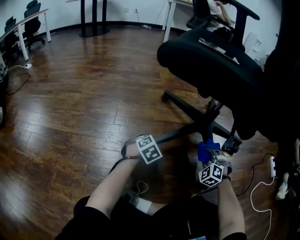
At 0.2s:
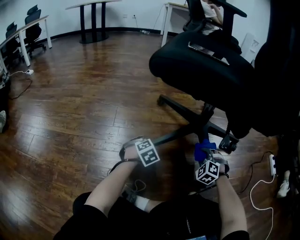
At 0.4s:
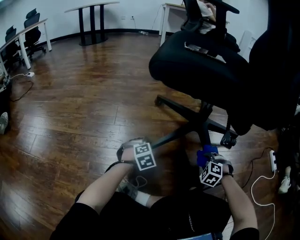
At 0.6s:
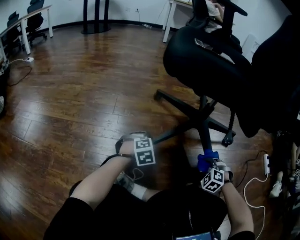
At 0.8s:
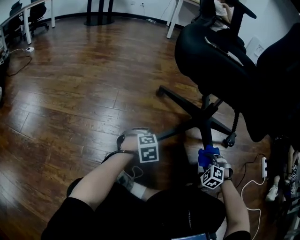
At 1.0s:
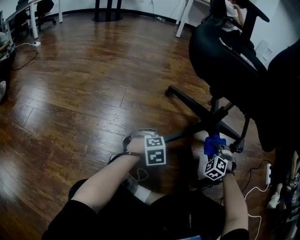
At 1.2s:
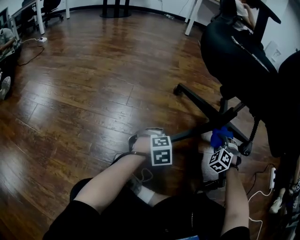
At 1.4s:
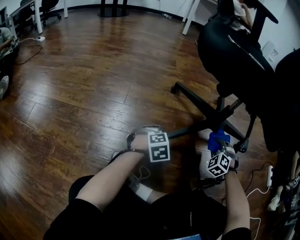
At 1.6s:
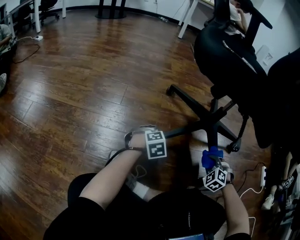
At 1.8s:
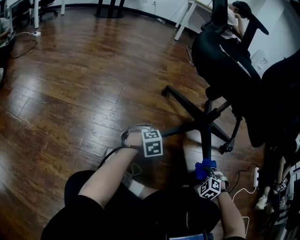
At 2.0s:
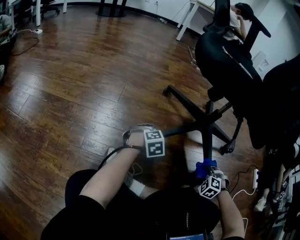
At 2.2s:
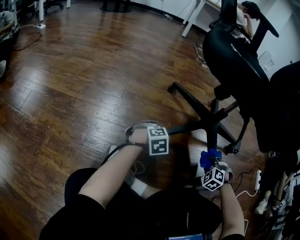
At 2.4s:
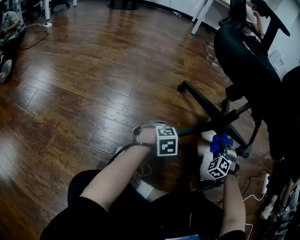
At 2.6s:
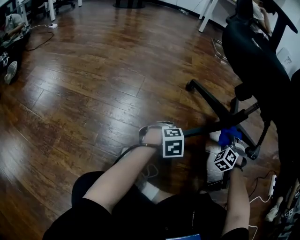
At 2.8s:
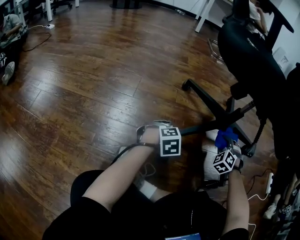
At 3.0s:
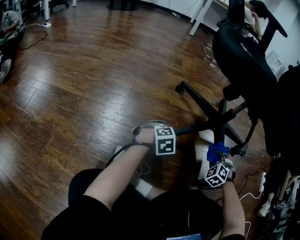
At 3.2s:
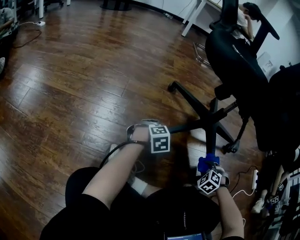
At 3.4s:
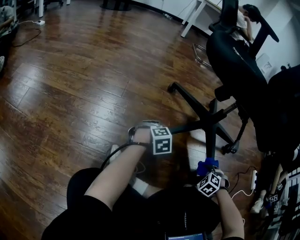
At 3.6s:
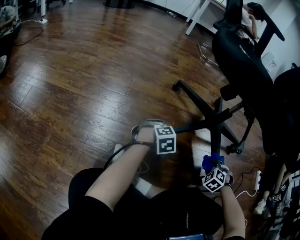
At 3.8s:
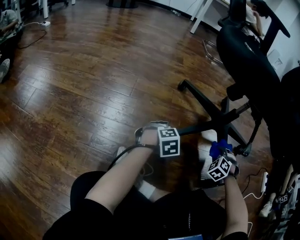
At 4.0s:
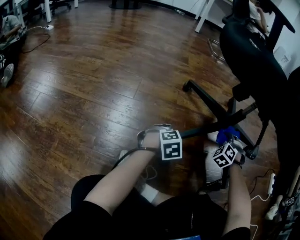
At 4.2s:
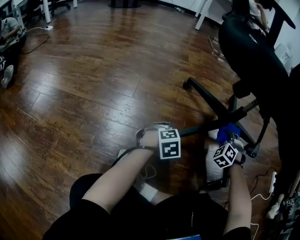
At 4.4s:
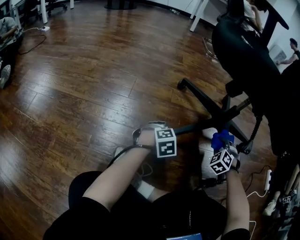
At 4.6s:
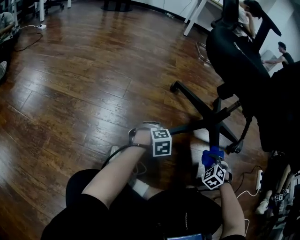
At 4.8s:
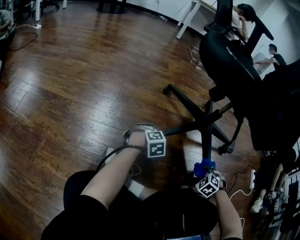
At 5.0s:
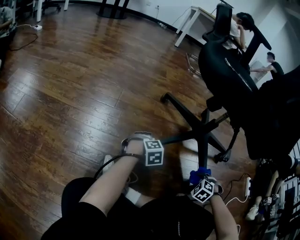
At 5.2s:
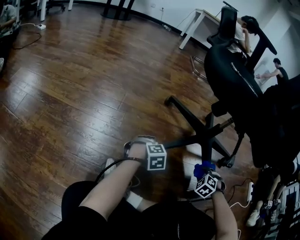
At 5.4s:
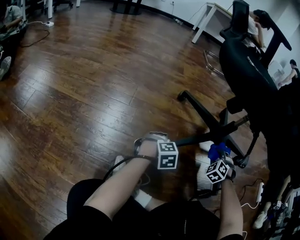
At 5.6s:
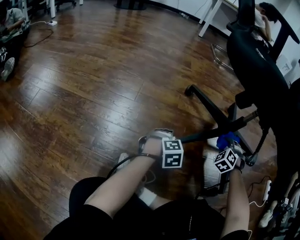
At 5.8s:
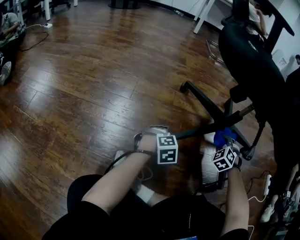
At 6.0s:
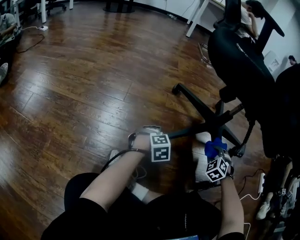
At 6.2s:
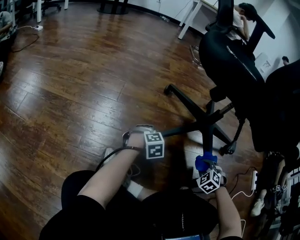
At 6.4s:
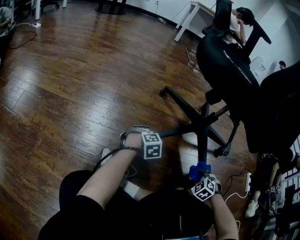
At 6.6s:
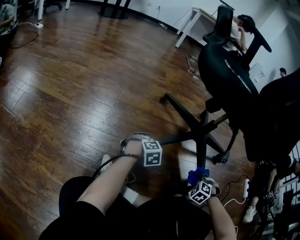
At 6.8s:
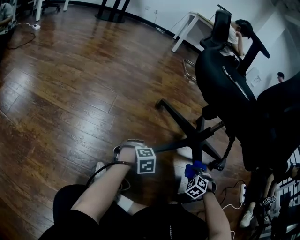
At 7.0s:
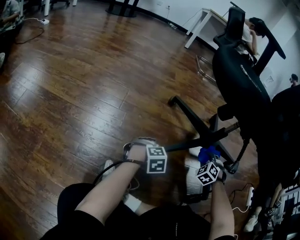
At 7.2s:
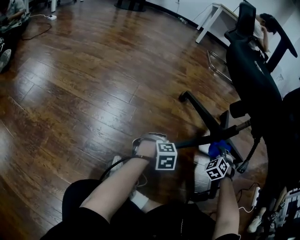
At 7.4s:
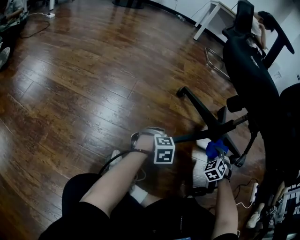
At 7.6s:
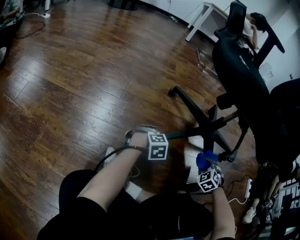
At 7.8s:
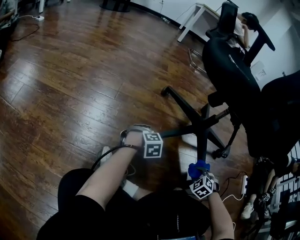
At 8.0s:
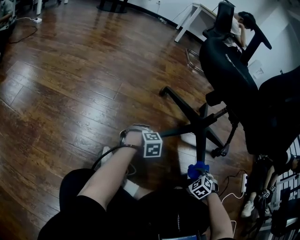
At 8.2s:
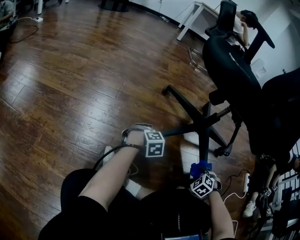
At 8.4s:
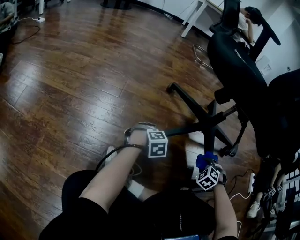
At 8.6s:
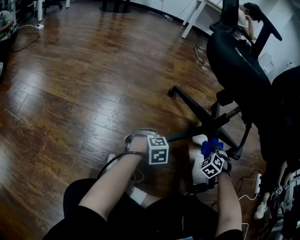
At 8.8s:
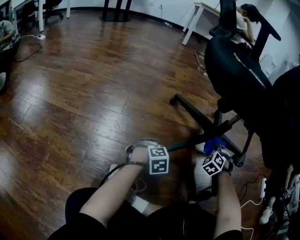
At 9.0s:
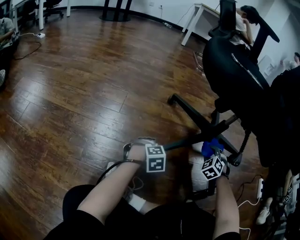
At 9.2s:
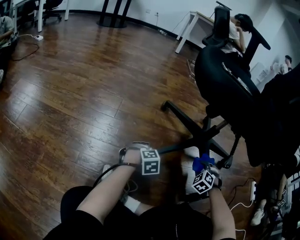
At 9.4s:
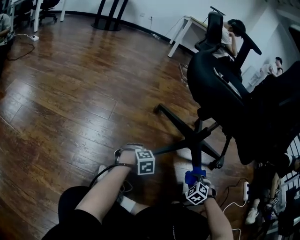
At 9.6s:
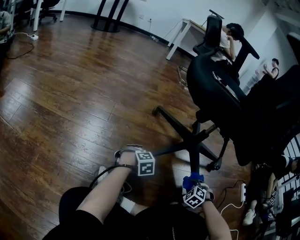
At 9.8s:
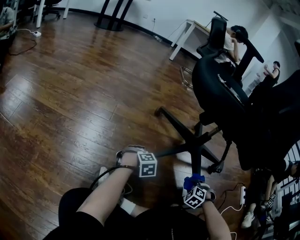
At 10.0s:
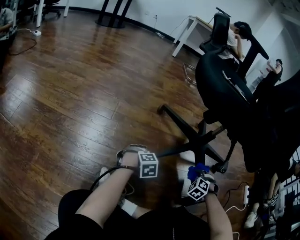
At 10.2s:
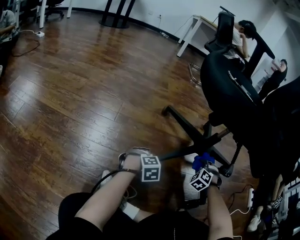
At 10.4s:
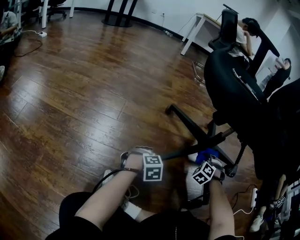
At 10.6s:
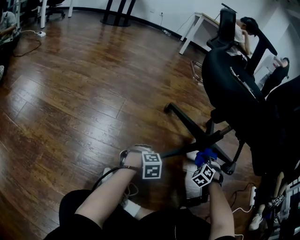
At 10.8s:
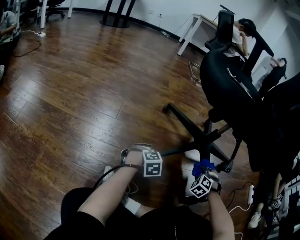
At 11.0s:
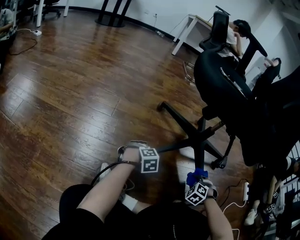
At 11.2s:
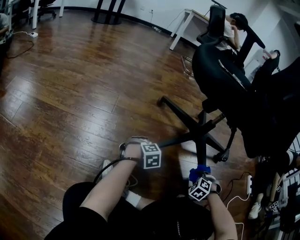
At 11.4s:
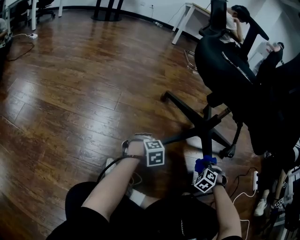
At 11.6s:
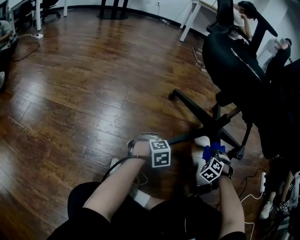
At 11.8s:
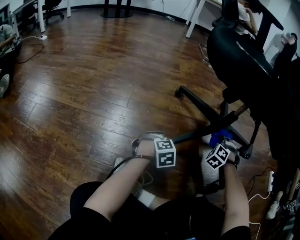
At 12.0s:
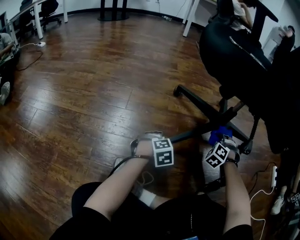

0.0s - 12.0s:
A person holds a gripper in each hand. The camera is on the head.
0.0s - 1.6s: The left gripper shifts by approximately 5 cm.

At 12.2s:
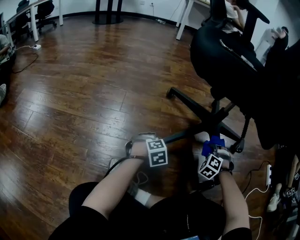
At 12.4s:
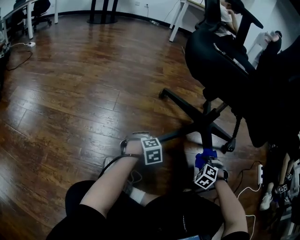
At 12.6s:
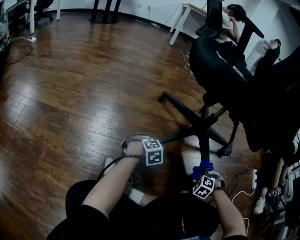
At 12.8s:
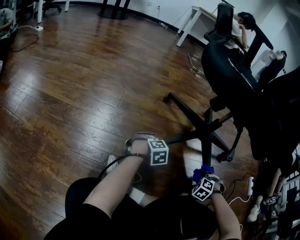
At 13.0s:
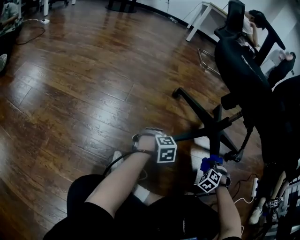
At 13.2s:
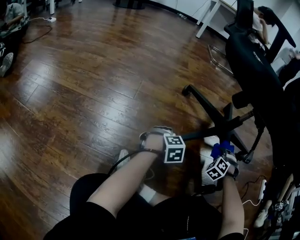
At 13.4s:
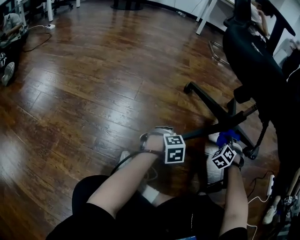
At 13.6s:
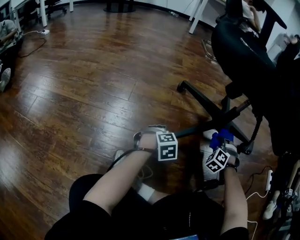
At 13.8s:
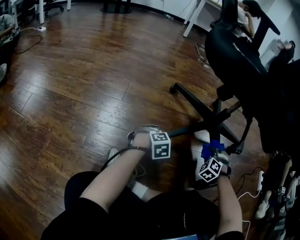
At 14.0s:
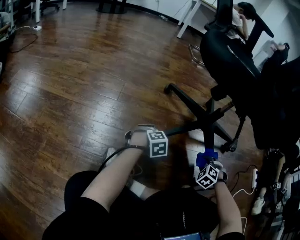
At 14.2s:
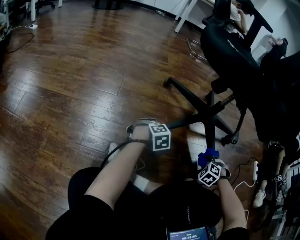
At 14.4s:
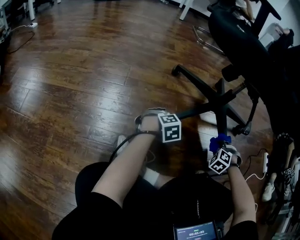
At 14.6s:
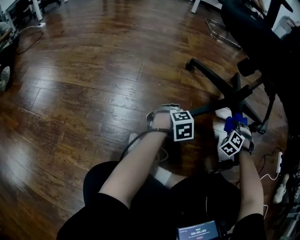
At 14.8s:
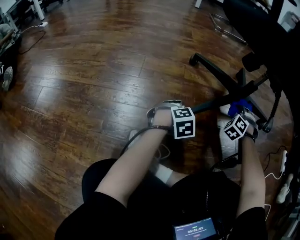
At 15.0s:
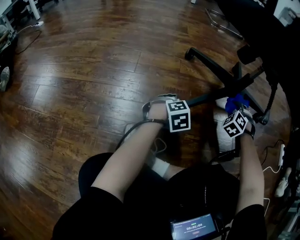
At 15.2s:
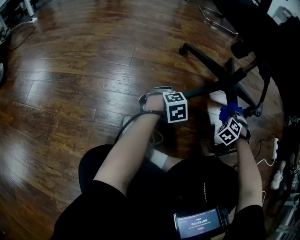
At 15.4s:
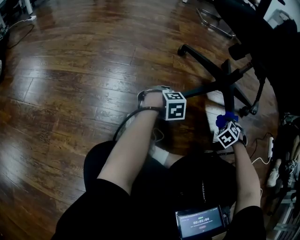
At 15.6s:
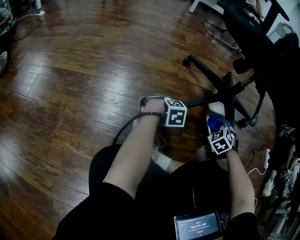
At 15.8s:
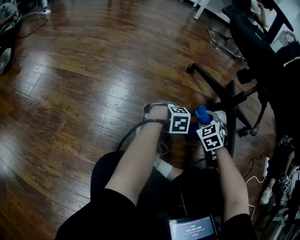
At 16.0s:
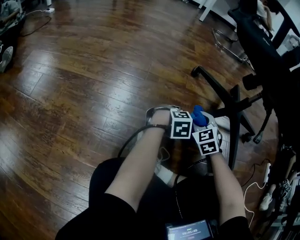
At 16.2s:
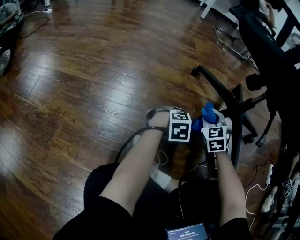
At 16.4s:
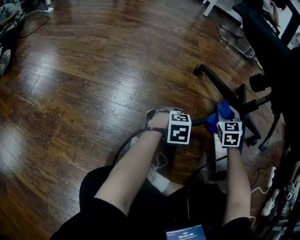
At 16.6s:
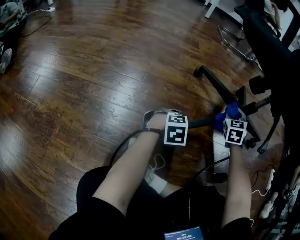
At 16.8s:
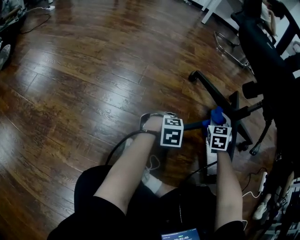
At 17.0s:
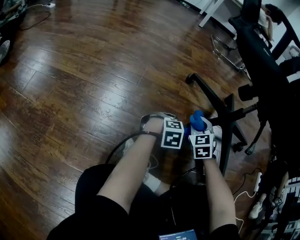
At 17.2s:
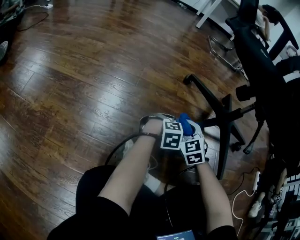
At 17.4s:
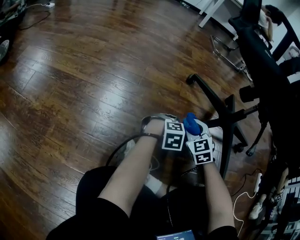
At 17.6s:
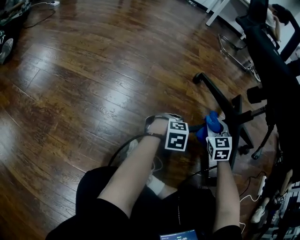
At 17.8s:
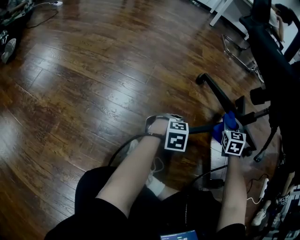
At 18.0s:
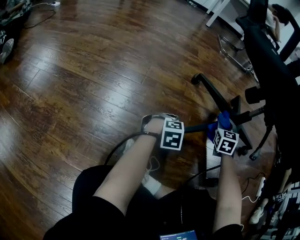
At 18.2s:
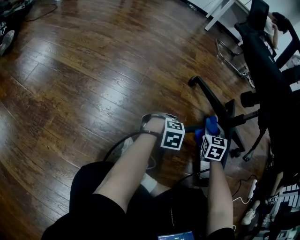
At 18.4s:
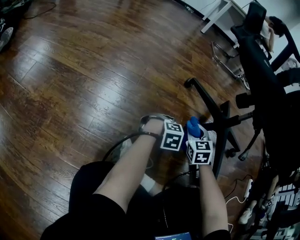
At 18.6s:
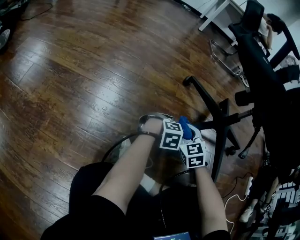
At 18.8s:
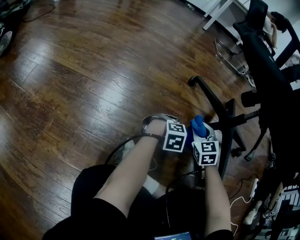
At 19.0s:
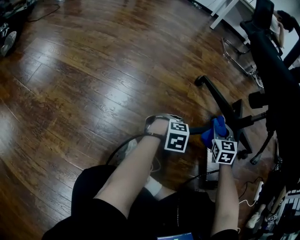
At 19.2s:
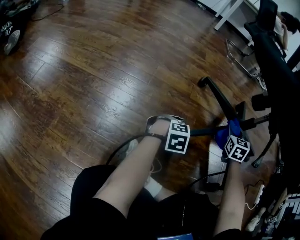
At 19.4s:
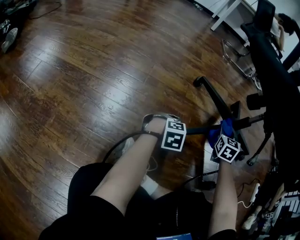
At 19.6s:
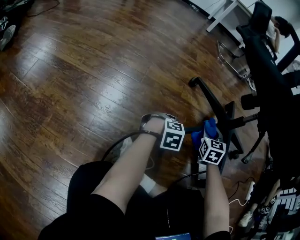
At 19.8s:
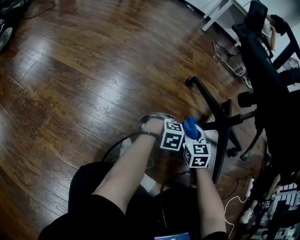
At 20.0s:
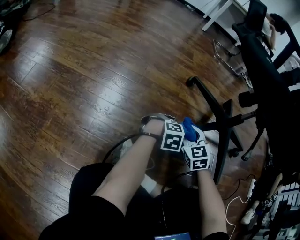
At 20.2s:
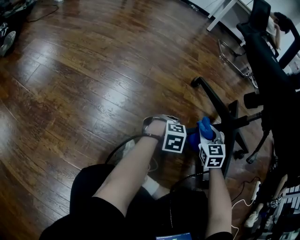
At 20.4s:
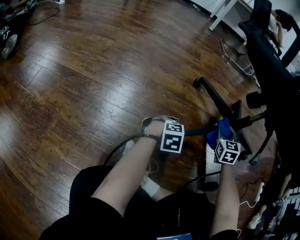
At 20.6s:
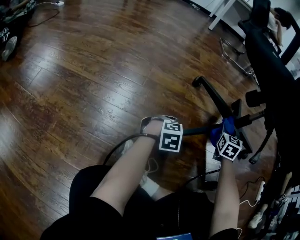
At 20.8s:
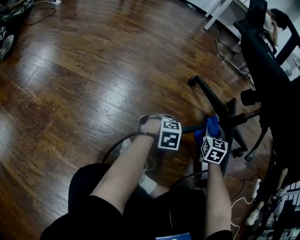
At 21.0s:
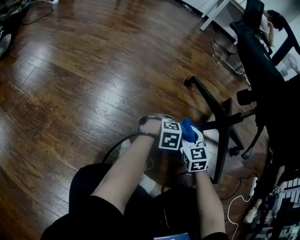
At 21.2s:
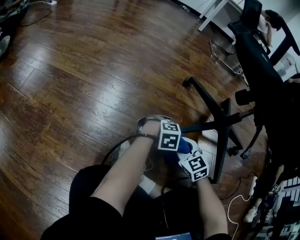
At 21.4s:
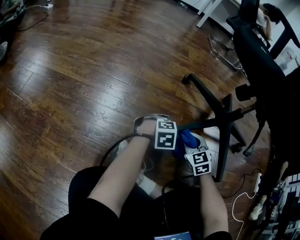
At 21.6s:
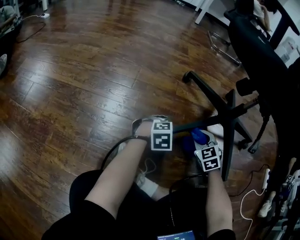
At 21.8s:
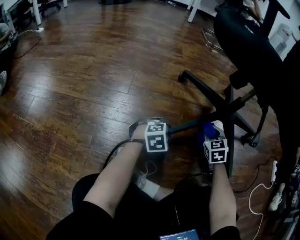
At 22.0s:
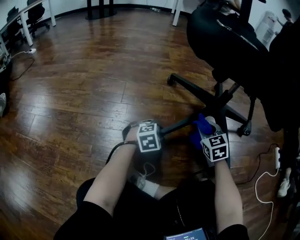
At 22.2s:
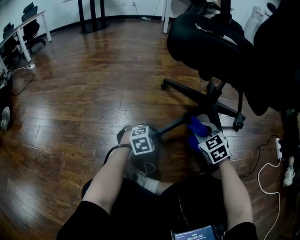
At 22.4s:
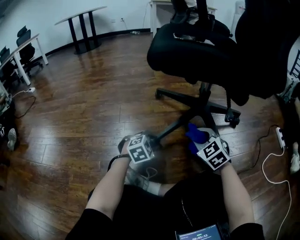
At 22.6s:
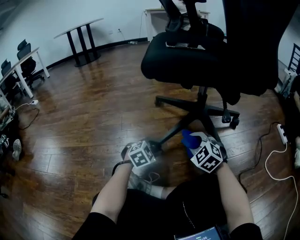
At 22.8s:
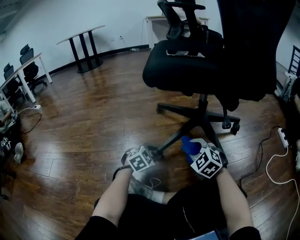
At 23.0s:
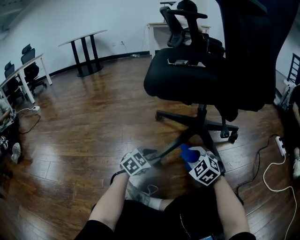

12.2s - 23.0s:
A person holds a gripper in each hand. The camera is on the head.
21.4s - 23.0s: The left gripper goes roughly 10 cm upward.

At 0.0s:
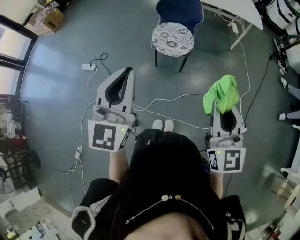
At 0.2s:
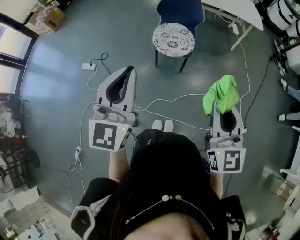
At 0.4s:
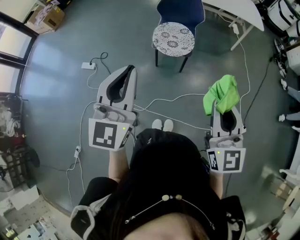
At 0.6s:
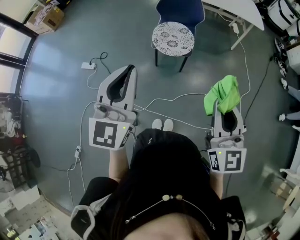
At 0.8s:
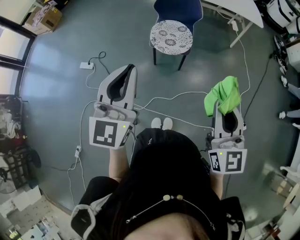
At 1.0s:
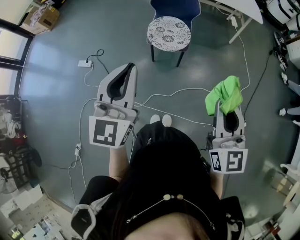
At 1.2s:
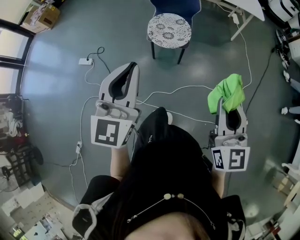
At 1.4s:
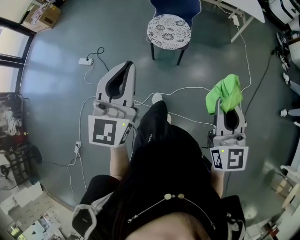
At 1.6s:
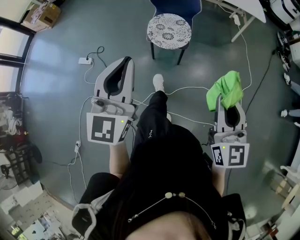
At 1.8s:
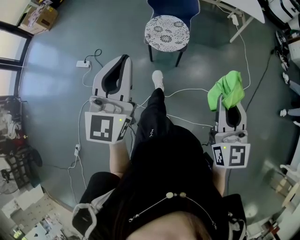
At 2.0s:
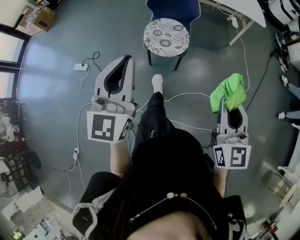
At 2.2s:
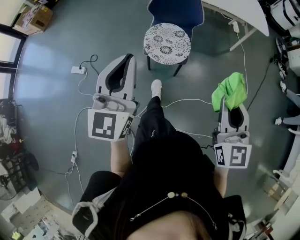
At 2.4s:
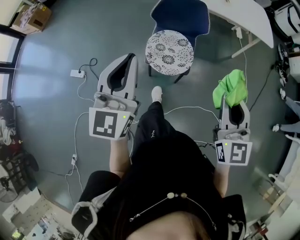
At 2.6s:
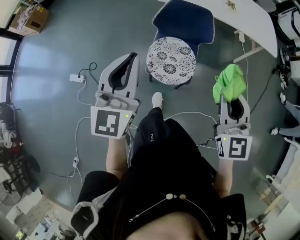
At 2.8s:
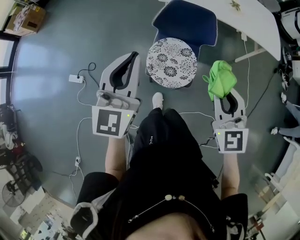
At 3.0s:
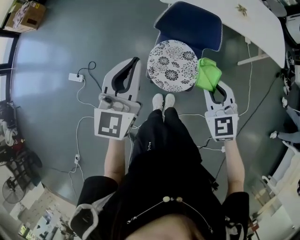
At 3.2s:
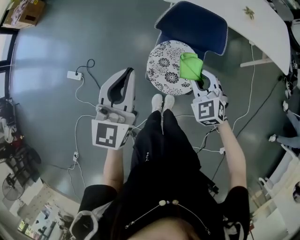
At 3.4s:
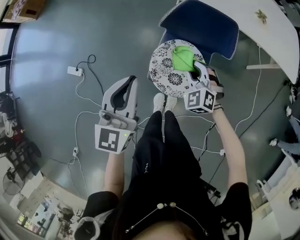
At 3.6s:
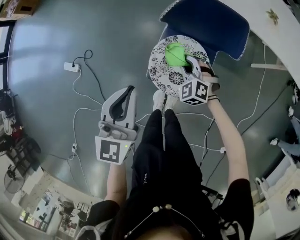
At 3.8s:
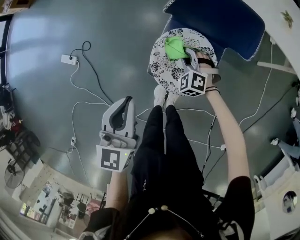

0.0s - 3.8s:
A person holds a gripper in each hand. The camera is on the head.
0.0s - 1.2s: The left gripper moves approximately 5 cm, while the right gripper is displaced to the right by about 5 cm.
1.2s - 2.6s: The two grippers travel together, forward, approximately 40 cm.
2.6s - 3.8s: The left gripper is displaced downward by approximately 25 cm, and changes its angle by roughly 30 degrees, while the right gripper travels downward and forward by roughly 60 cm, and points its fingers some 40 degrees further downward.
